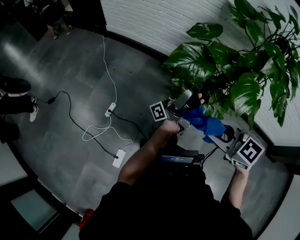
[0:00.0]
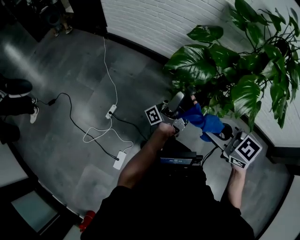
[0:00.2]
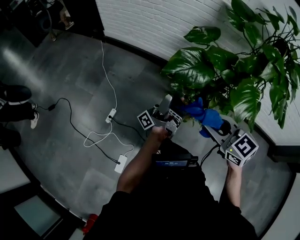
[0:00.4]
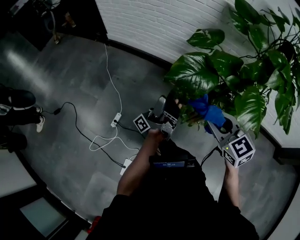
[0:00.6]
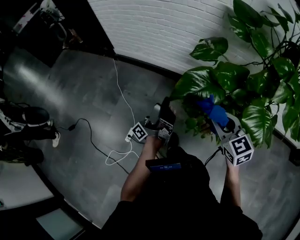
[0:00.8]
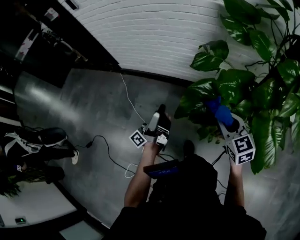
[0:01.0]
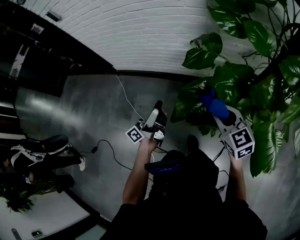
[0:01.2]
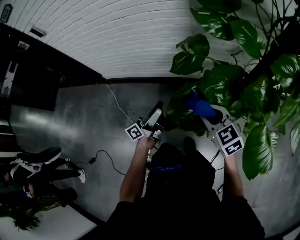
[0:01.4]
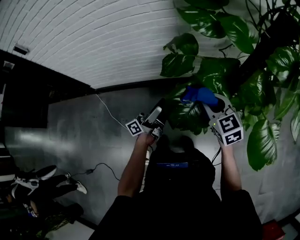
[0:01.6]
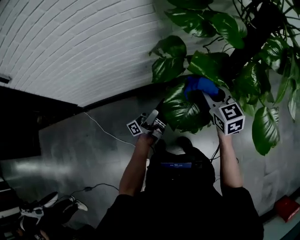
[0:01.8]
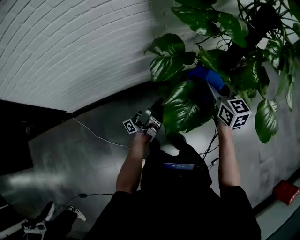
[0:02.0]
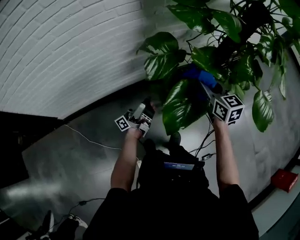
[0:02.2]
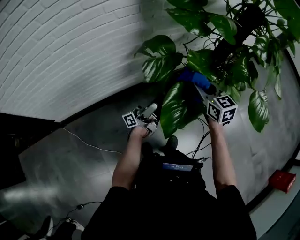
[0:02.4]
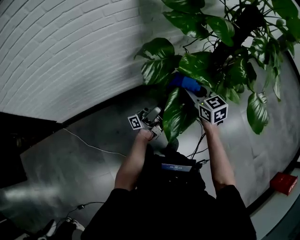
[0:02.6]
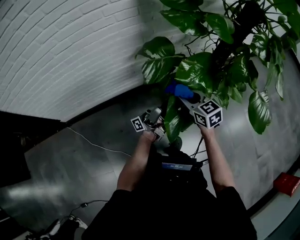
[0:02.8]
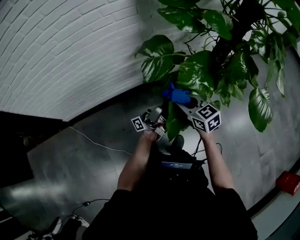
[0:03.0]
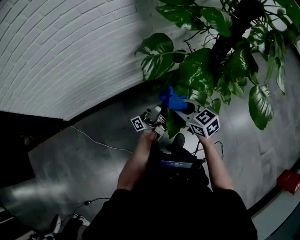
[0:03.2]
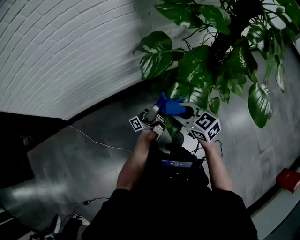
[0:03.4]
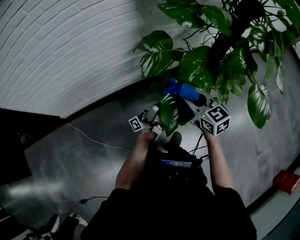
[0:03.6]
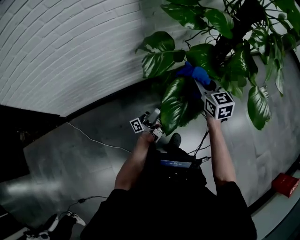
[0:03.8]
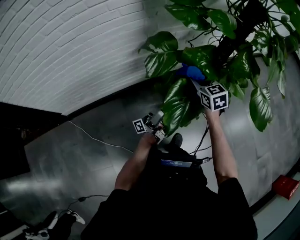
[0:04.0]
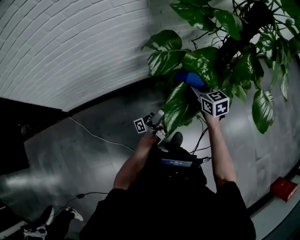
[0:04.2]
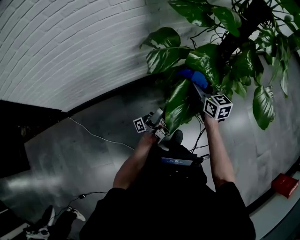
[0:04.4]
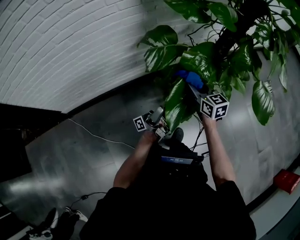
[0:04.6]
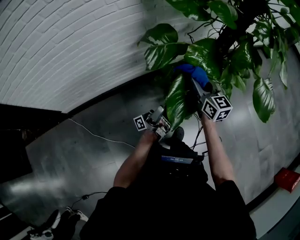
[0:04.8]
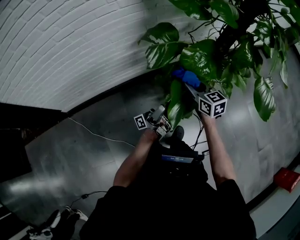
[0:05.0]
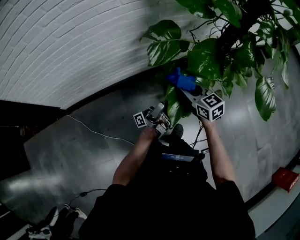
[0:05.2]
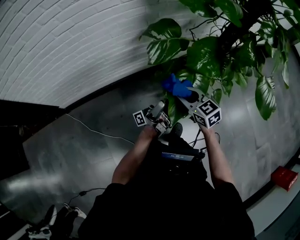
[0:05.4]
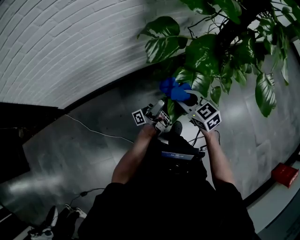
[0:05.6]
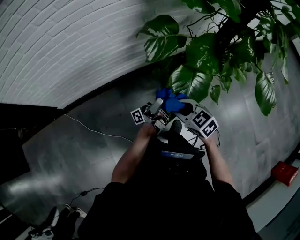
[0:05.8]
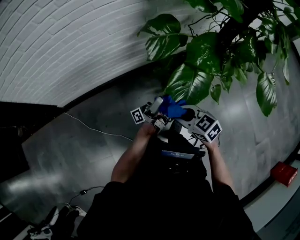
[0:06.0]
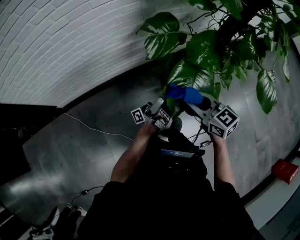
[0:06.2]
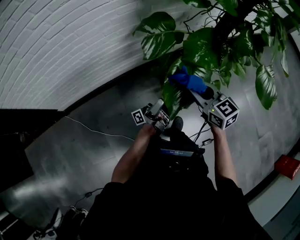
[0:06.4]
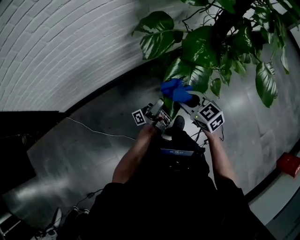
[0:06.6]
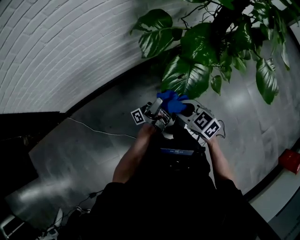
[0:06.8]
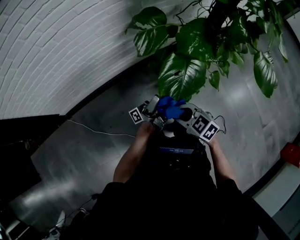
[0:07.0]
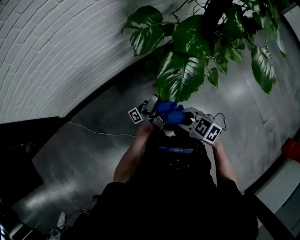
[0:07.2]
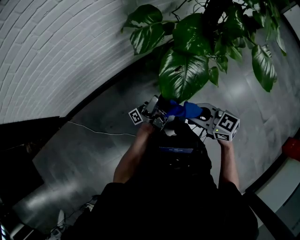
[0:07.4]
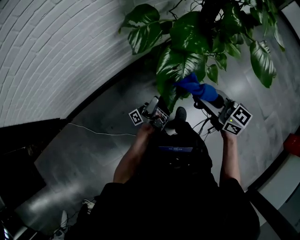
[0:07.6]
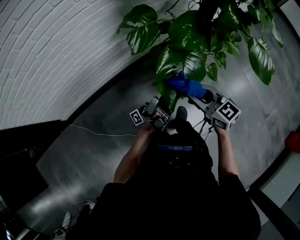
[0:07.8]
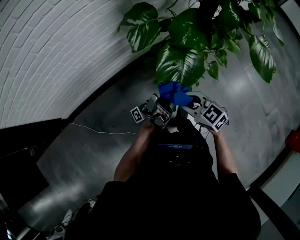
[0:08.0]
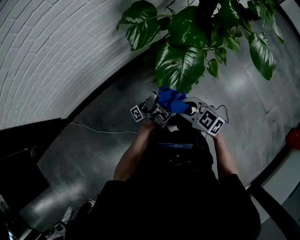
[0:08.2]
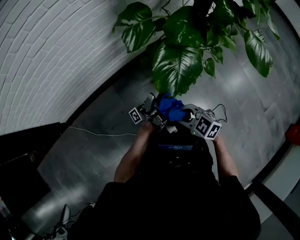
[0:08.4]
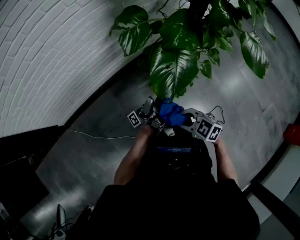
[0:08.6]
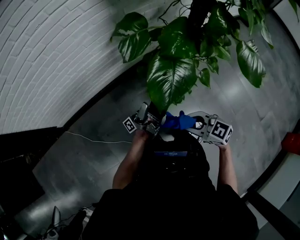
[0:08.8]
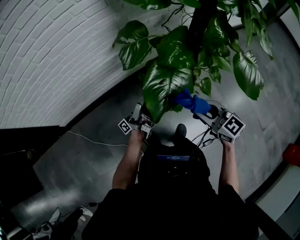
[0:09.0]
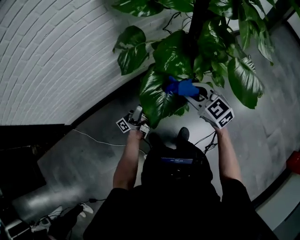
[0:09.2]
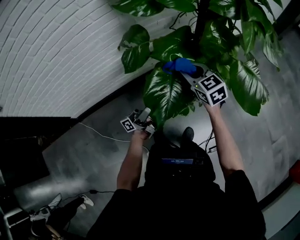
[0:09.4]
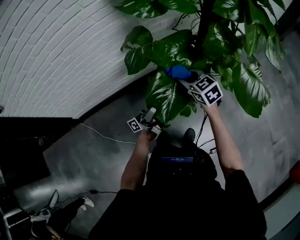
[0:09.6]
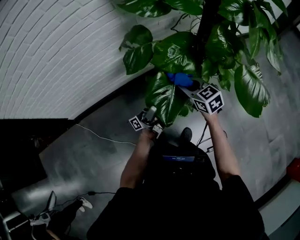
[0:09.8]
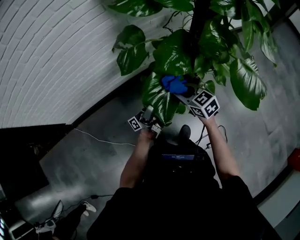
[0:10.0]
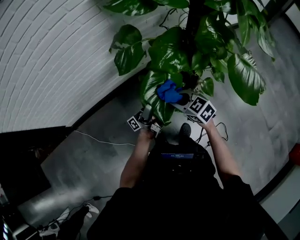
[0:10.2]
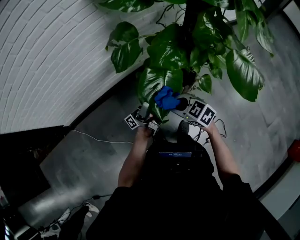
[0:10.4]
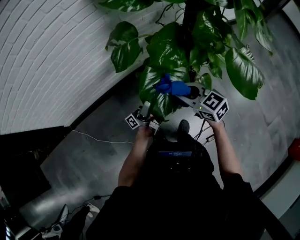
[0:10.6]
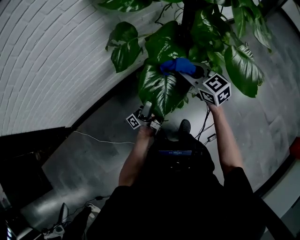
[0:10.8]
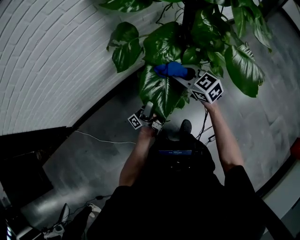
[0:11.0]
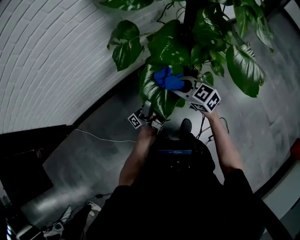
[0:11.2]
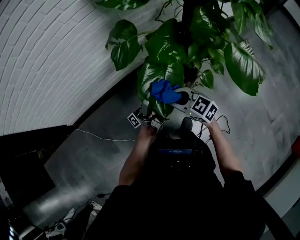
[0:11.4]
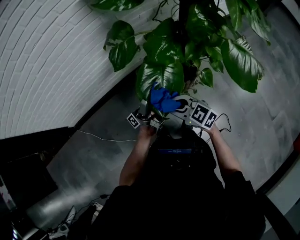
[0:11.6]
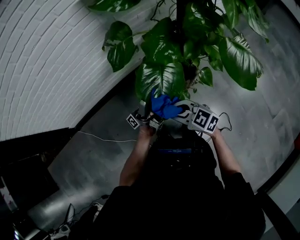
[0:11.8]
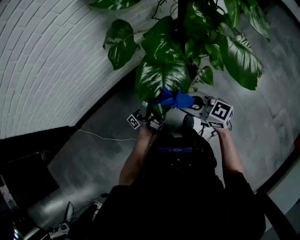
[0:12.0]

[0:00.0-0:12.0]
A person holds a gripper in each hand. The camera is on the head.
0:00.0 to 0:01.6: The right gripper ends up some 50 cm from where it was, and swivels approximately 50 degrees.
0:01.6 to 0:03.0: The right gripper shifts by roughly 10 cm.
0:03.0 to 0:04.4: The right gripper ends up roughly 10 cm from where it was.
0:04.4 to 0:06.0: The right gripper moves roughly 25 cm, and swivels roughly 40 degrees.
0:06.0 to 0:07.6: The right gripper goes up and down, about 15 cm each way, reversing 2 times, and changes its angle by approximately 30 degrees.
0:07.6 to 0:09.0: The right gripper travels downward and back again, some 15 cm each way.
0:09.0 to 0:10.4: The right gripper goes approximately 10 cm downward, and swivels approximately 20 degrees.
0:10.4 to 0:12.0: The right gripper moves up and down over roughly 10 cm, changing direction 2 times, and rotates roughly 20 degrees.

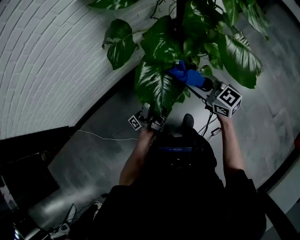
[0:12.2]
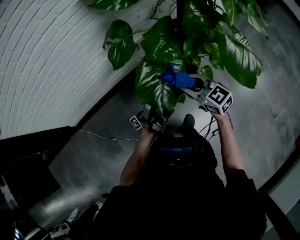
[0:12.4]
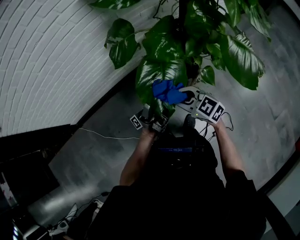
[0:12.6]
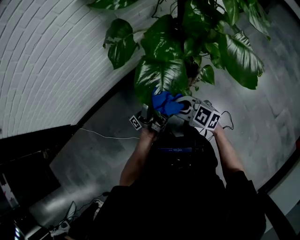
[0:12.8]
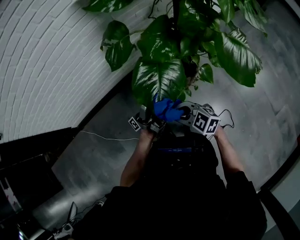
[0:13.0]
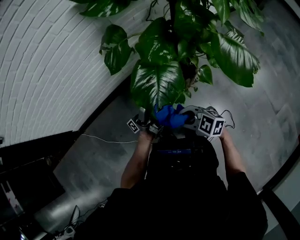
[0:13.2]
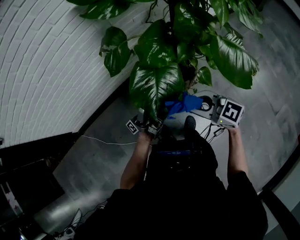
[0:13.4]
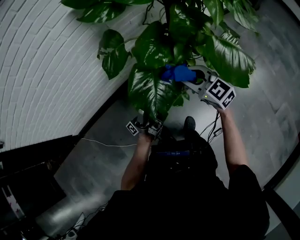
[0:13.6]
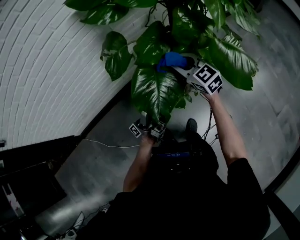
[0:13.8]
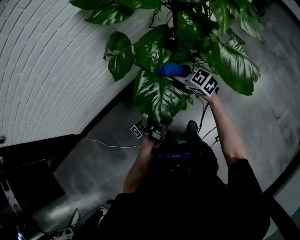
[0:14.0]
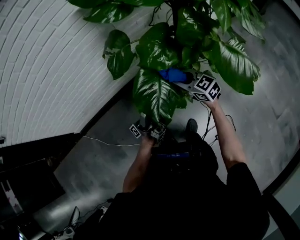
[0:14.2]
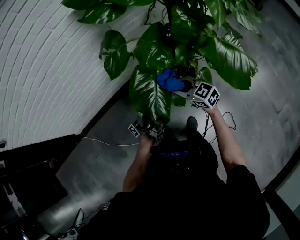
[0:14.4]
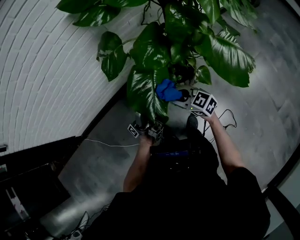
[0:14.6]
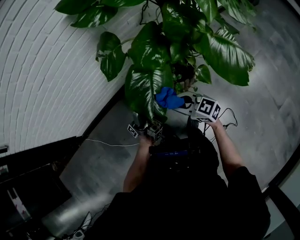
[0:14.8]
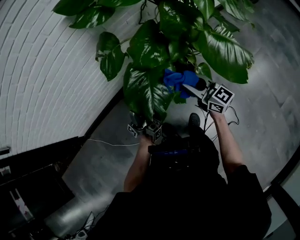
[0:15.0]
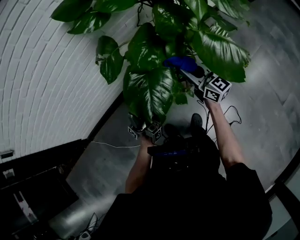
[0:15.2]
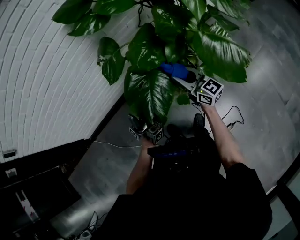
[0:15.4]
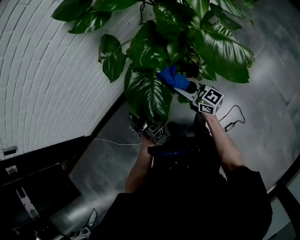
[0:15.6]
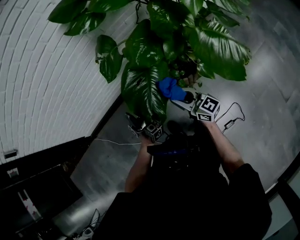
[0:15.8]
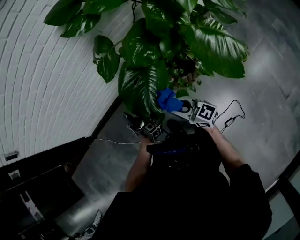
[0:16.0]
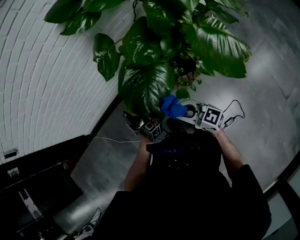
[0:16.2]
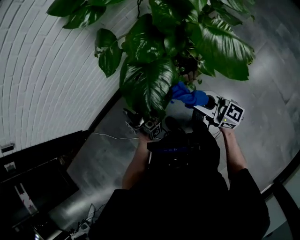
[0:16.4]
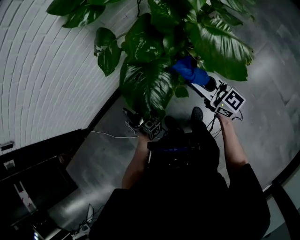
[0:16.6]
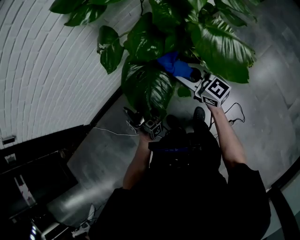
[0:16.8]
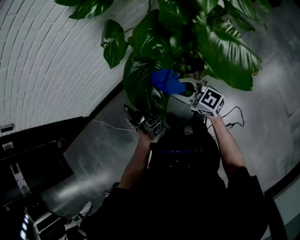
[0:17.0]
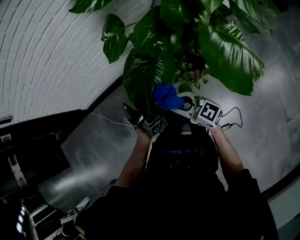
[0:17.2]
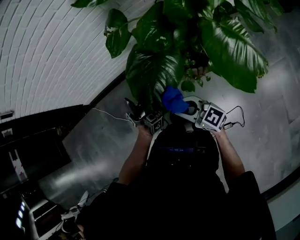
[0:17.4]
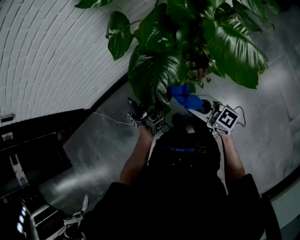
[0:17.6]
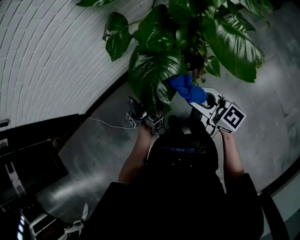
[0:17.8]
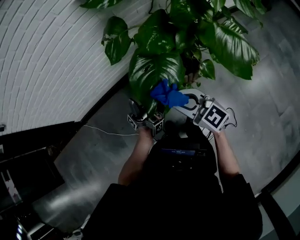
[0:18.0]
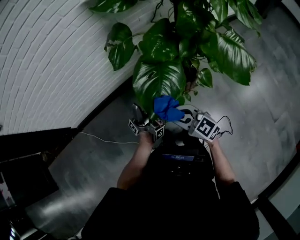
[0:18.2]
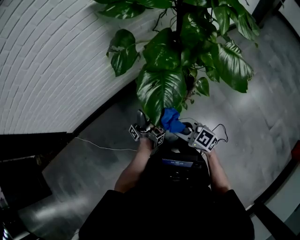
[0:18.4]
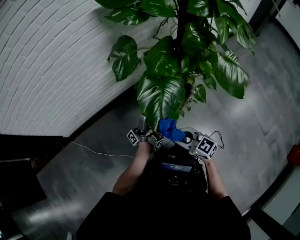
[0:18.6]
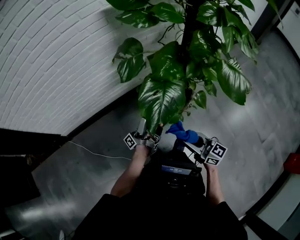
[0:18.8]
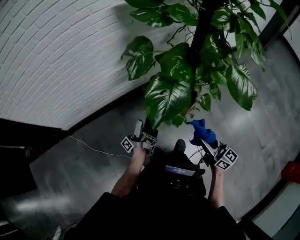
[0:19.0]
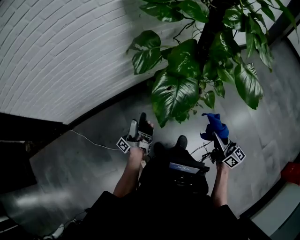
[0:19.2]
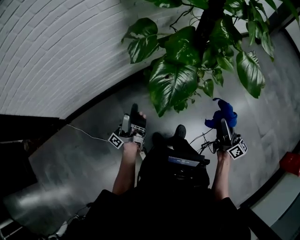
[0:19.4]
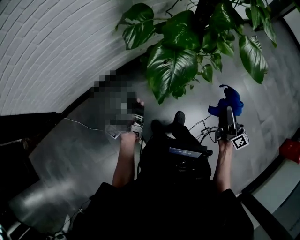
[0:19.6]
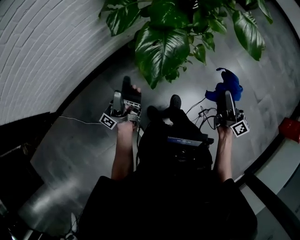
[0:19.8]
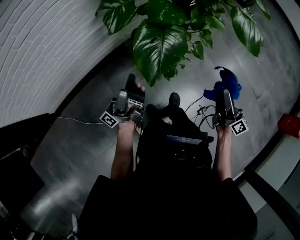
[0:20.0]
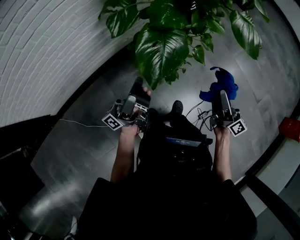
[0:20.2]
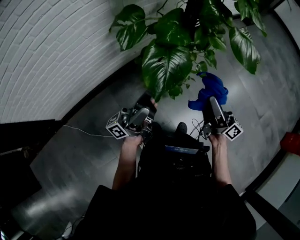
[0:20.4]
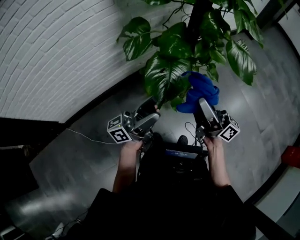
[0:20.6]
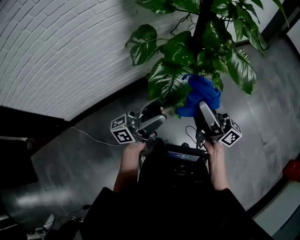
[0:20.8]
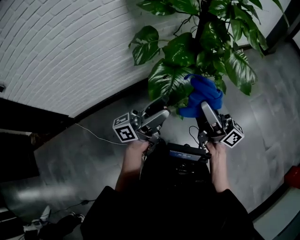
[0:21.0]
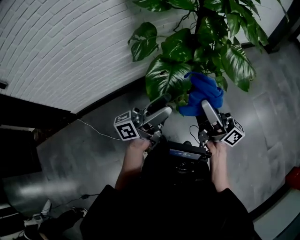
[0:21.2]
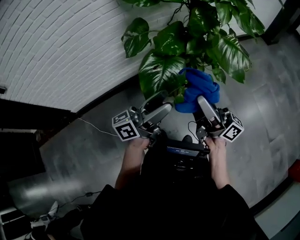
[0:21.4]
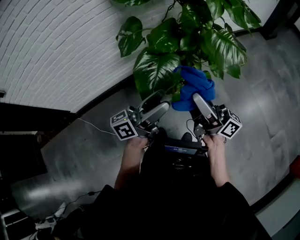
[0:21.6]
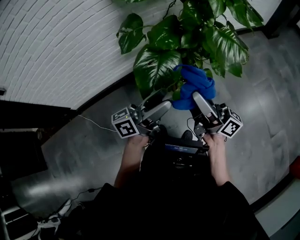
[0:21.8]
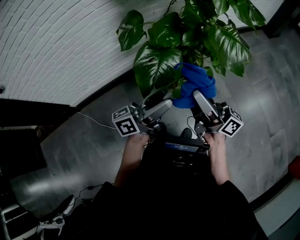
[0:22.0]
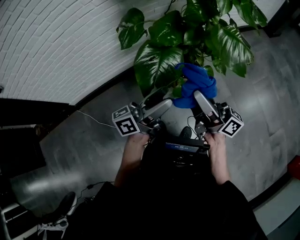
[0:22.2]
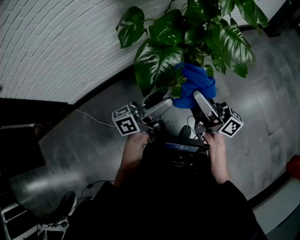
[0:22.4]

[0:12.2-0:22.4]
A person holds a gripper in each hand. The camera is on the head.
0:12.2 to 0:13.6: The right gripper goes downward and returns, roughly 10 cm each way.
0:13.6 to 0:15.2: The right gripper moves approximately 10 cm downward and comes back, and swivels roughly 40 degrees.
0:15.2 to 0:16.6: The right gripper moves approximately 5 cm downward and comes back.
0:16.6 to 0:18.0: The right gripper reaches approximately 10 cm downward, then returns, and rotates approximately 30 degrees.
0:18.0 to 0:19.4: The right gripper goes downward and returns, some 10 cm each way, and turns by about 60 degrees.
0:19.4 to 0:21.0: The right gripper goes about 15 cm upward, and changes its angle by about 30 degrees.
0:21.0 to 0:22.4: The right gripper shifts by about 5 cm.

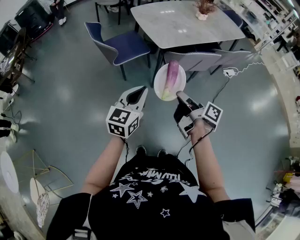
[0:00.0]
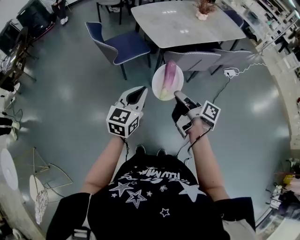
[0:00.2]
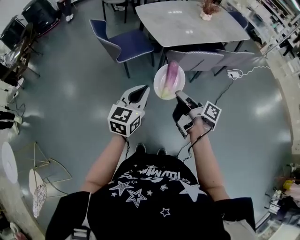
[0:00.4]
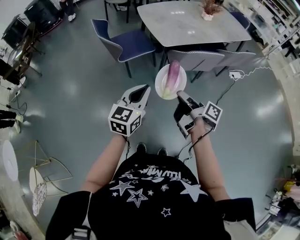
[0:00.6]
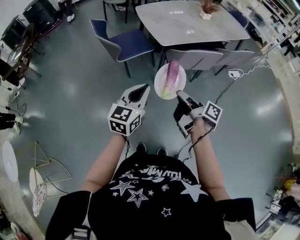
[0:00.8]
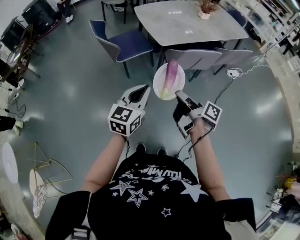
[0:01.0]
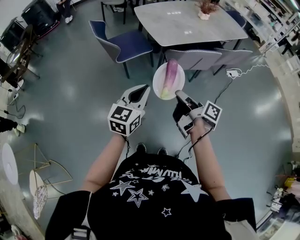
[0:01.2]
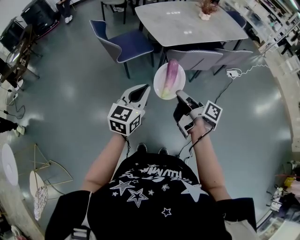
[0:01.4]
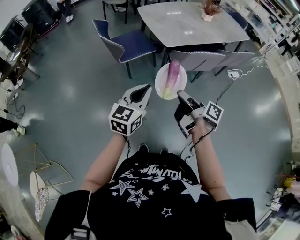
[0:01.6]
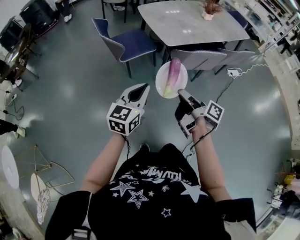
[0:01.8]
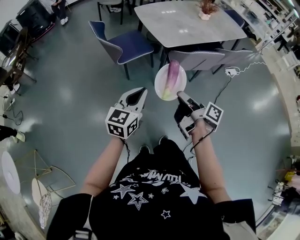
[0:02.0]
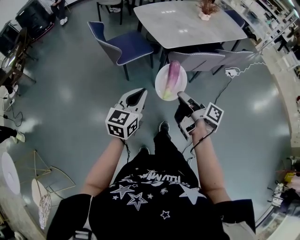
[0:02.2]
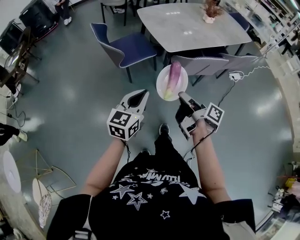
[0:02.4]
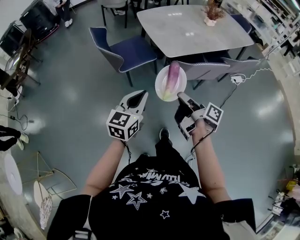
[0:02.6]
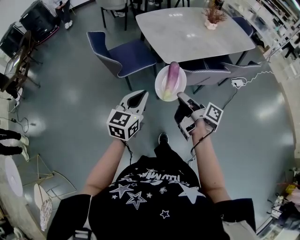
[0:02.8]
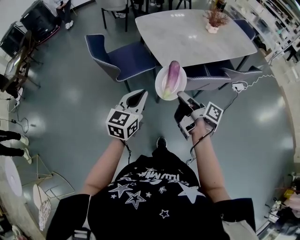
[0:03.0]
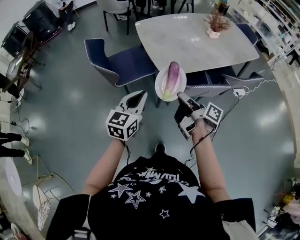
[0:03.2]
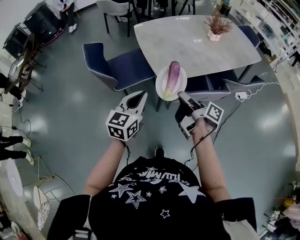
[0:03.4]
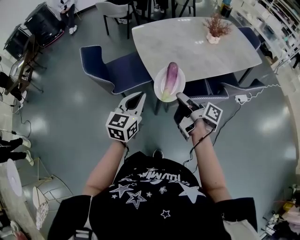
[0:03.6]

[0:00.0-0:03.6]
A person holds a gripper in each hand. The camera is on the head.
0:01.8 to 0:03.6: The left gripper changes place by some 35 cm.
